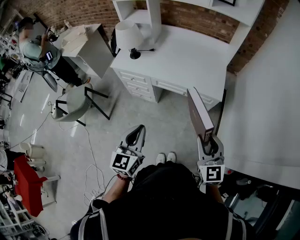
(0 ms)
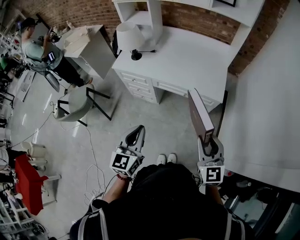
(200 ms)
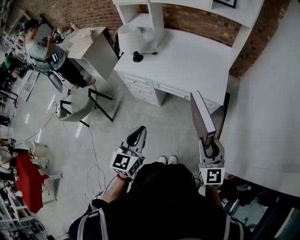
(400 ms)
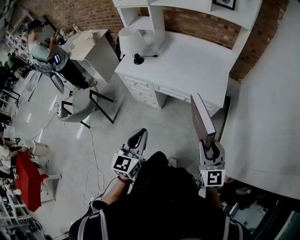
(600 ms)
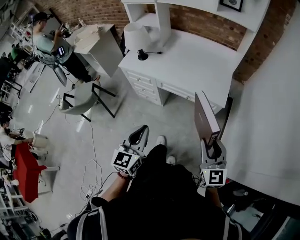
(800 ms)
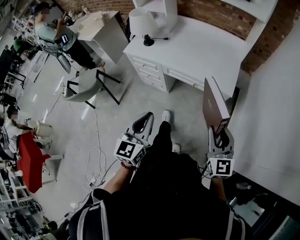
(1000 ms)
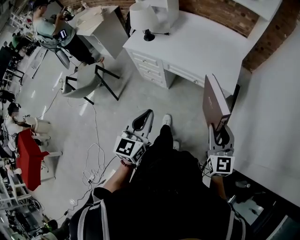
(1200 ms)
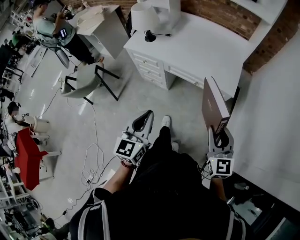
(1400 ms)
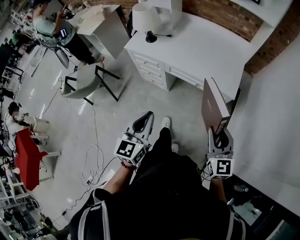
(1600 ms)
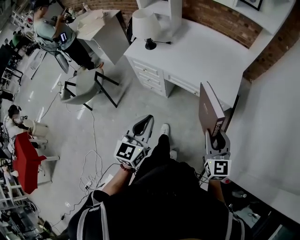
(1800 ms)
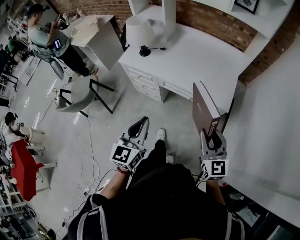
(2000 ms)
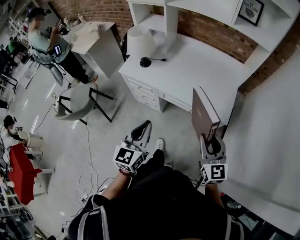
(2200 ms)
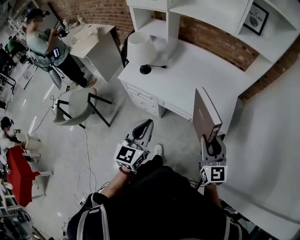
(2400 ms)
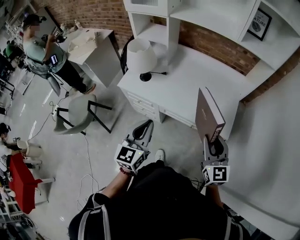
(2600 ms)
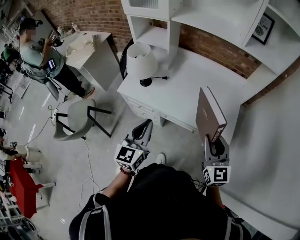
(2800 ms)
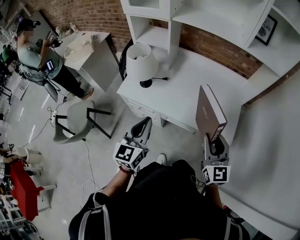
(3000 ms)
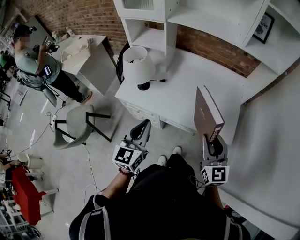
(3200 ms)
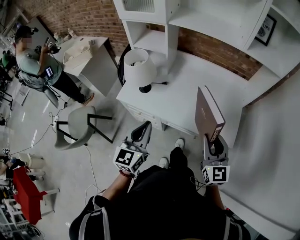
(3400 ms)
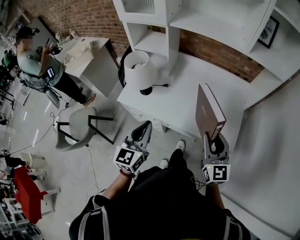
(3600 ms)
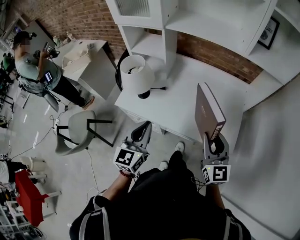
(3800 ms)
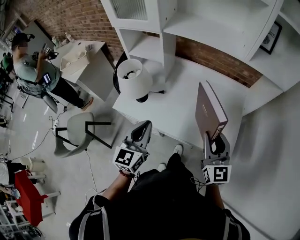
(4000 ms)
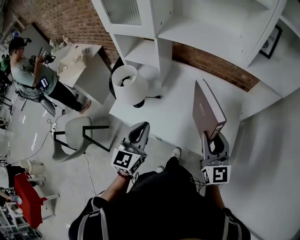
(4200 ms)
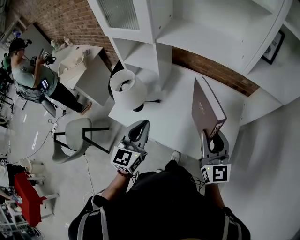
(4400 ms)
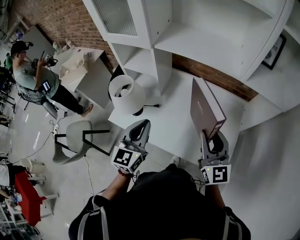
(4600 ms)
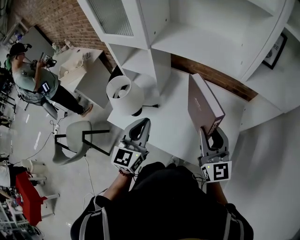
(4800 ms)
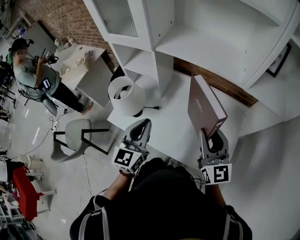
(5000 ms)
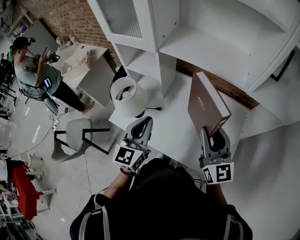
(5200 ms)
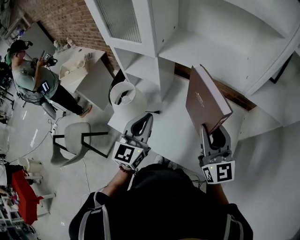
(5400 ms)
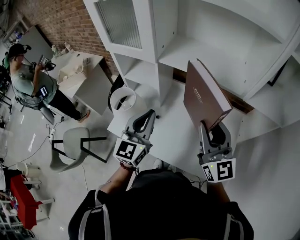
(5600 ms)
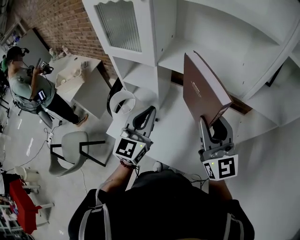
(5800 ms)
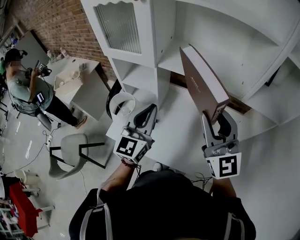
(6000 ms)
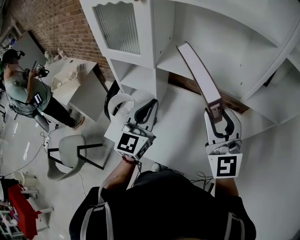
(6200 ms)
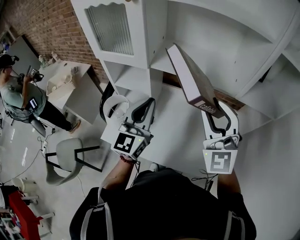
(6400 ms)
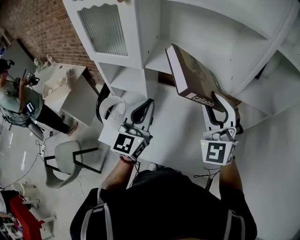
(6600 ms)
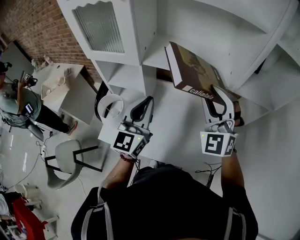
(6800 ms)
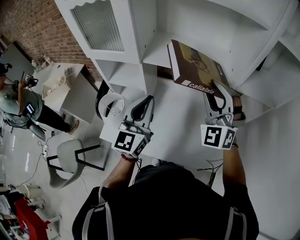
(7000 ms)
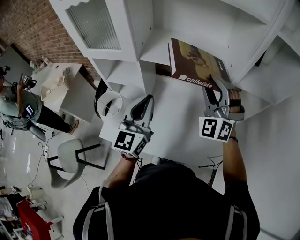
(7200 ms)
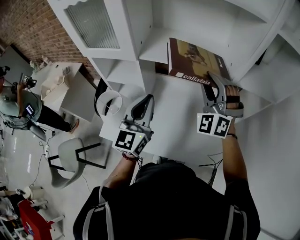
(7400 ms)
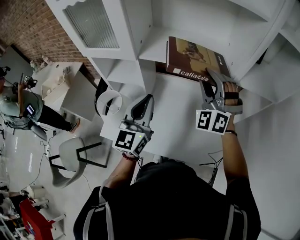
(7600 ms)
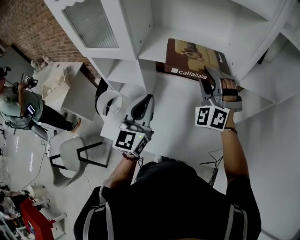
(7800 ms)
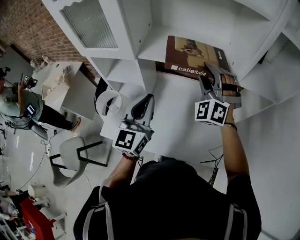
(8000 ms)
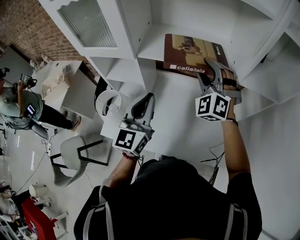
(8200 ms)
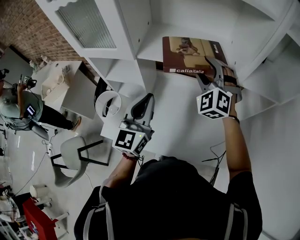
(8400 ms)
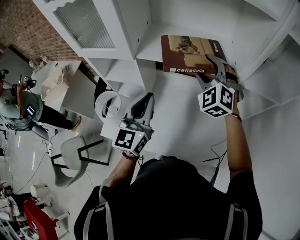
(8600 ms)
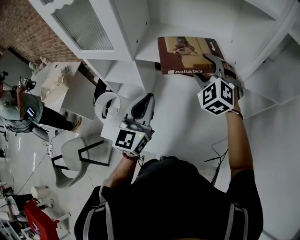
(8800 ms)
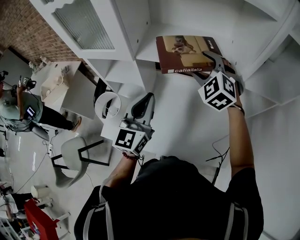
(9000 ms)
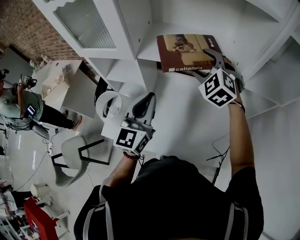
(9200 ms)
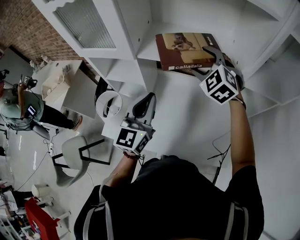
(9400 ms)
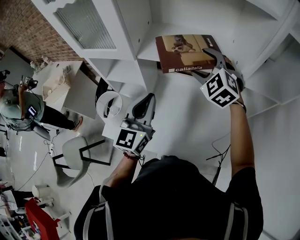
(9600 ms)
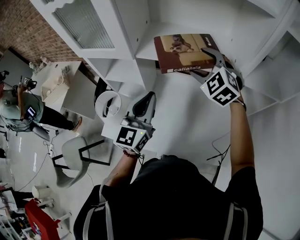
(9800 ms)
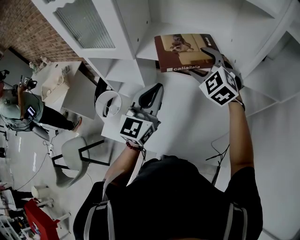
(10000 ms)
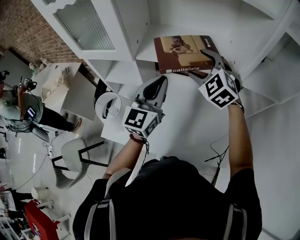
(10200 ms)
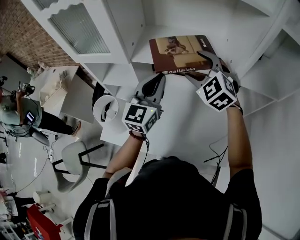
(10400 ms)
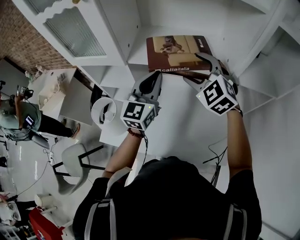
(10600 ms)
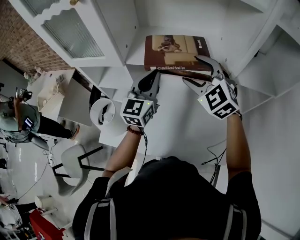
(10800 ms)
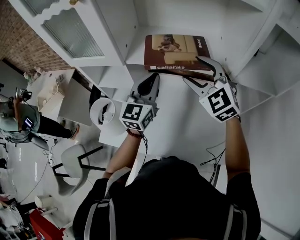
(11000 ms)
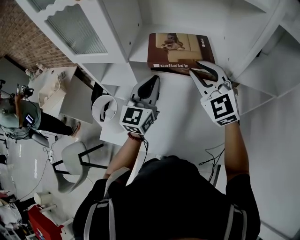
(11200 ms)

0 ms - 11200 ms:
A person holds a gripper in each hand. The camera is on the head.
0 ms - 1600 ms: The right gripper moves roughly 5 cm.
1600 ms - 3200 ms: The grippers both shift forward by about 30 cm.
3200 ms - 4800 ms: The grippers both shift forward by approximately 20 cm.
4800 ms - 6400 ms: The left gripper heads forward and upward, covering roughly 15 cm; the right gripper moves upward, forward and to the left, approximately 15 cm, and swivels roughly 40 degrees.
6400 ms - 8000 ms: The right gripper is displaced forward and downward by about 15 cm, and changes its angle by approximately 40 degrees. Meanwhile the left gripper ends up some 5 cm from where it was.
8000 ms - 9600 ms: The right gripper swivels approximately 30 degrees, and opens up.
9600 ms - 11200 ms: The right gripper travels backward by roughly 5 cm, changes its angle by some 20 degrees, and closes up; the left gripper moves forward, roughly 5 cm.

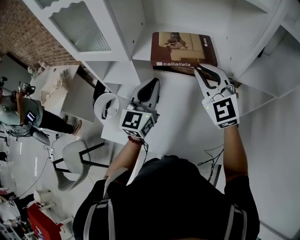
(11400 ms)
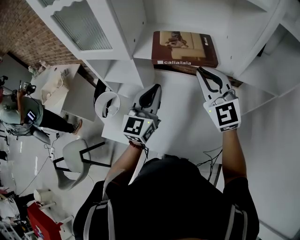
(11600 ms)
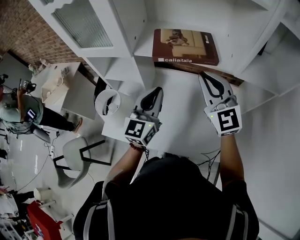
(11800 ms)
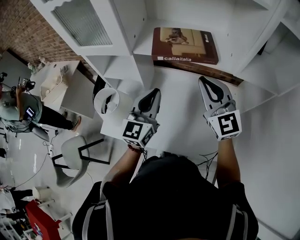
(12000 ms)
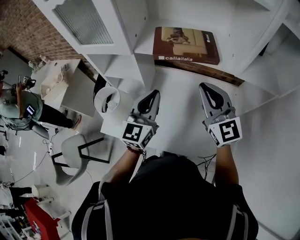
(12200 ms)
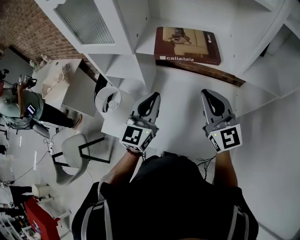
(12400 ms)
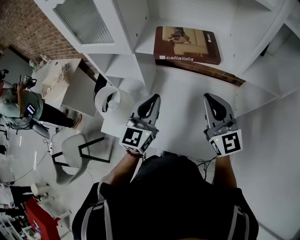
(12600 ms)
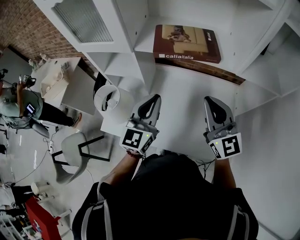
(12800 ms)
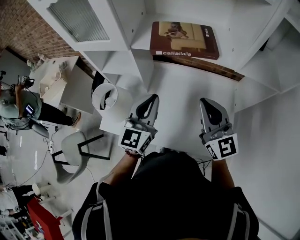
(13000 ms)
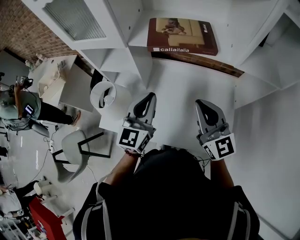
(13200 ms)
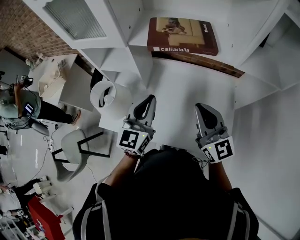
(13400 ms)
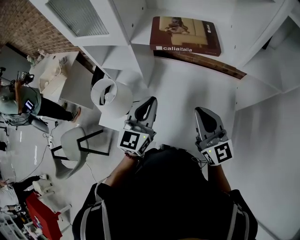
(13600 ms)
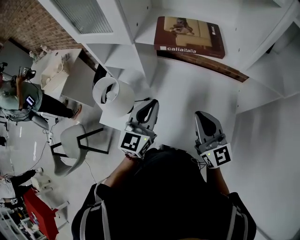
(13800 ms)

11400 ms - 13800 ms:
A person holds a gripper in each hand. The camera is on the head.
11400 ms - 12600 ms: The two grippers go roughly 10 cm backward. The right gripper turns by roughly 20 degrees.
12600 ms - 13800 ms: The right gripper travels downward and backward by roughly 10 cm.

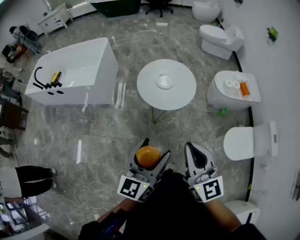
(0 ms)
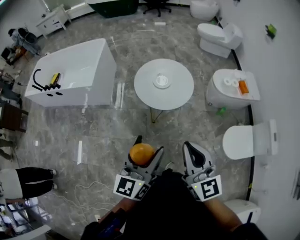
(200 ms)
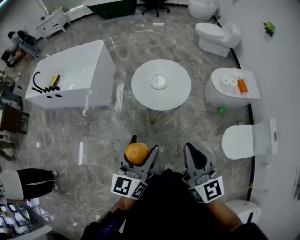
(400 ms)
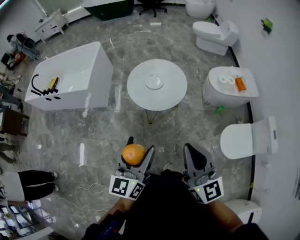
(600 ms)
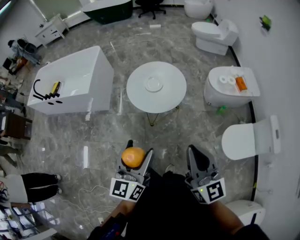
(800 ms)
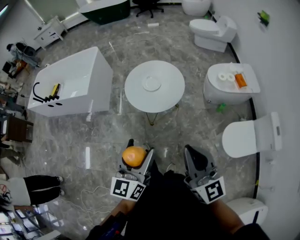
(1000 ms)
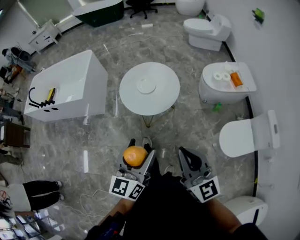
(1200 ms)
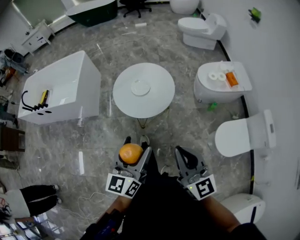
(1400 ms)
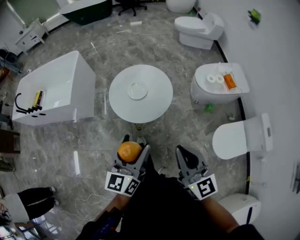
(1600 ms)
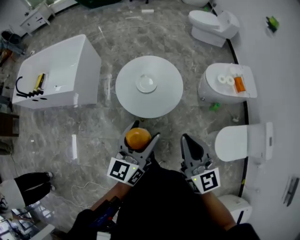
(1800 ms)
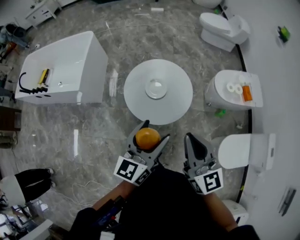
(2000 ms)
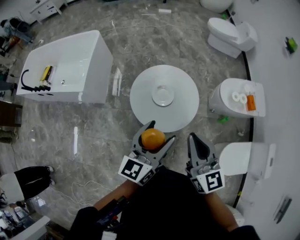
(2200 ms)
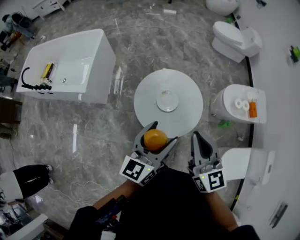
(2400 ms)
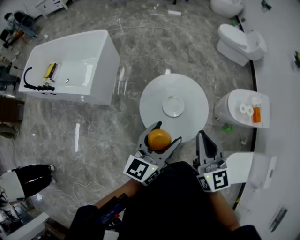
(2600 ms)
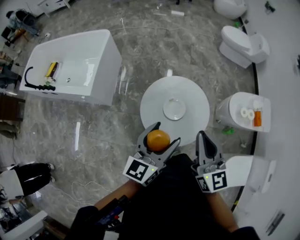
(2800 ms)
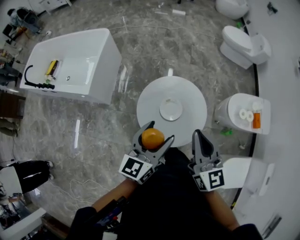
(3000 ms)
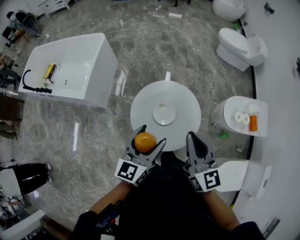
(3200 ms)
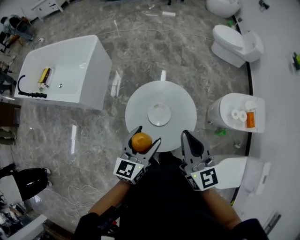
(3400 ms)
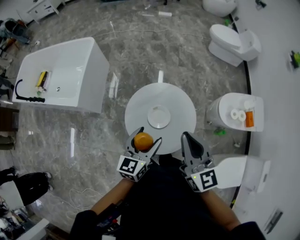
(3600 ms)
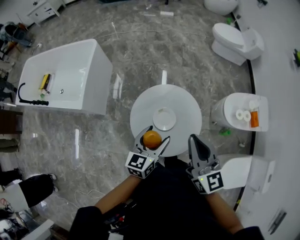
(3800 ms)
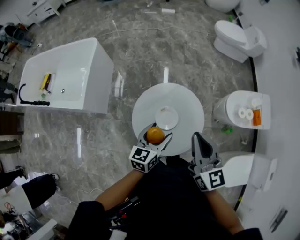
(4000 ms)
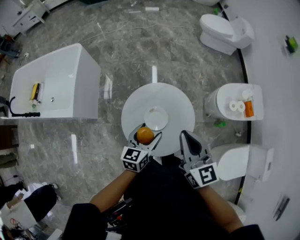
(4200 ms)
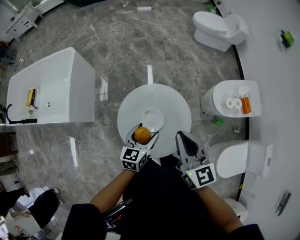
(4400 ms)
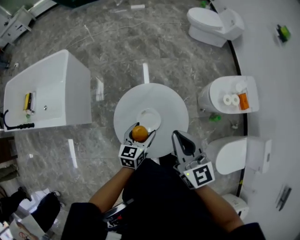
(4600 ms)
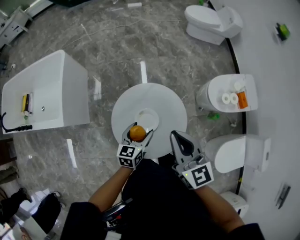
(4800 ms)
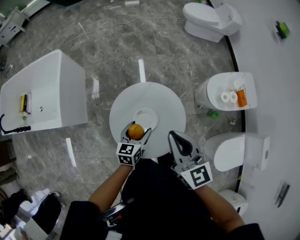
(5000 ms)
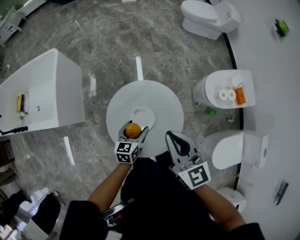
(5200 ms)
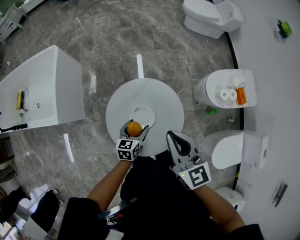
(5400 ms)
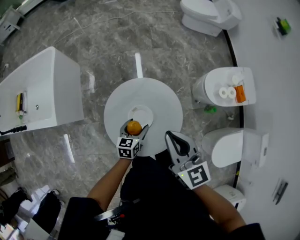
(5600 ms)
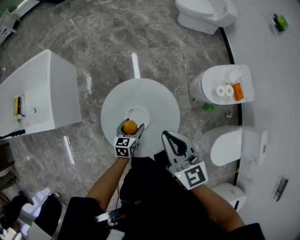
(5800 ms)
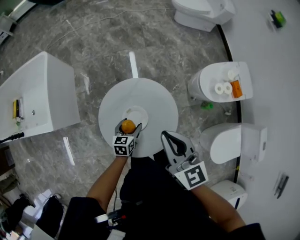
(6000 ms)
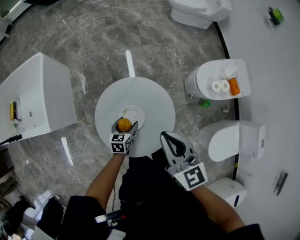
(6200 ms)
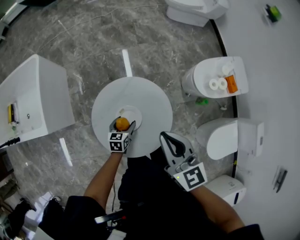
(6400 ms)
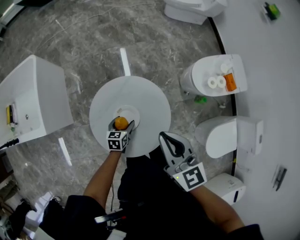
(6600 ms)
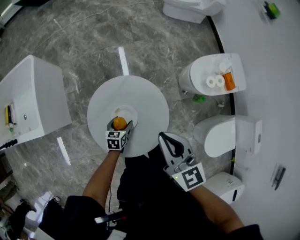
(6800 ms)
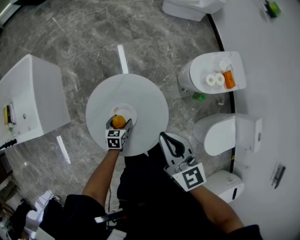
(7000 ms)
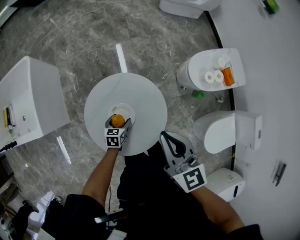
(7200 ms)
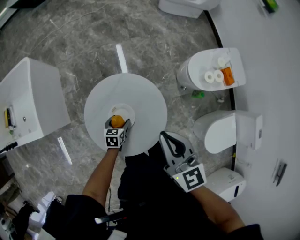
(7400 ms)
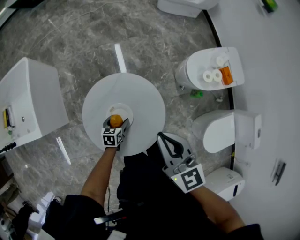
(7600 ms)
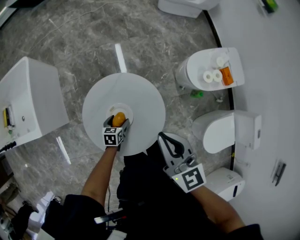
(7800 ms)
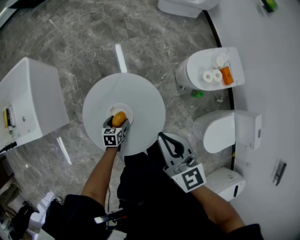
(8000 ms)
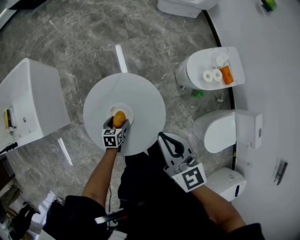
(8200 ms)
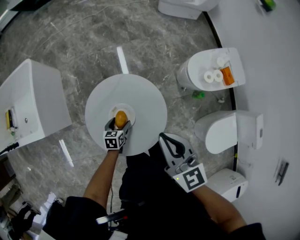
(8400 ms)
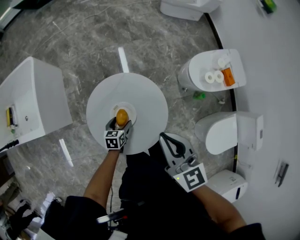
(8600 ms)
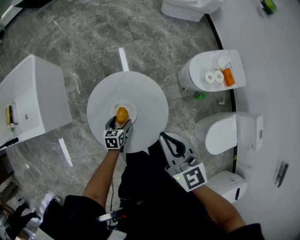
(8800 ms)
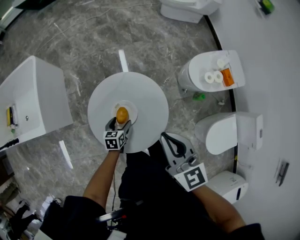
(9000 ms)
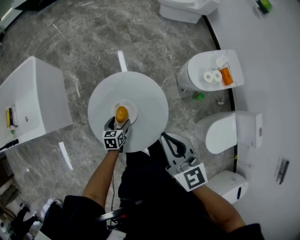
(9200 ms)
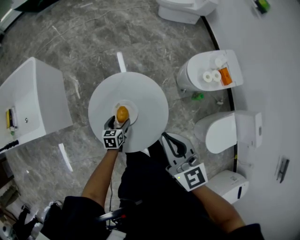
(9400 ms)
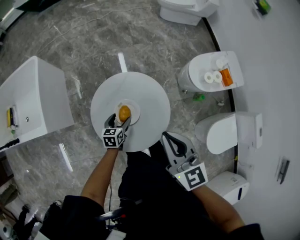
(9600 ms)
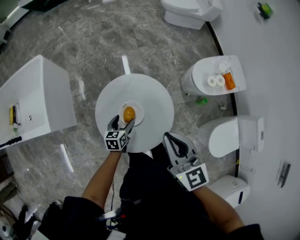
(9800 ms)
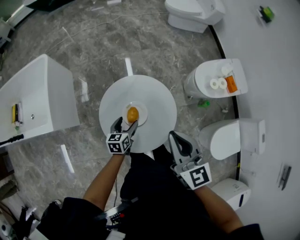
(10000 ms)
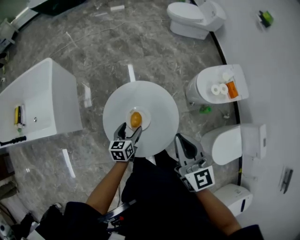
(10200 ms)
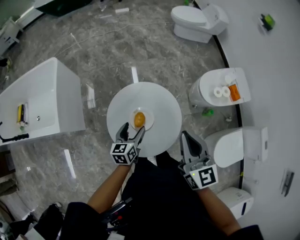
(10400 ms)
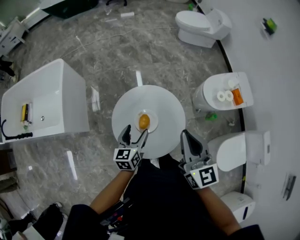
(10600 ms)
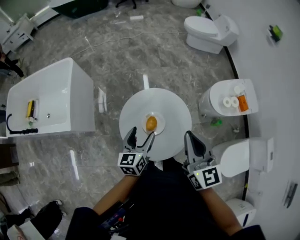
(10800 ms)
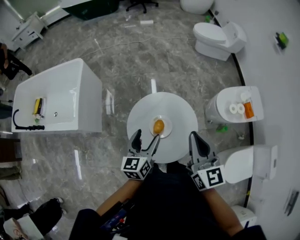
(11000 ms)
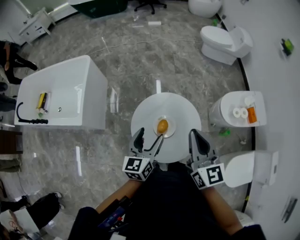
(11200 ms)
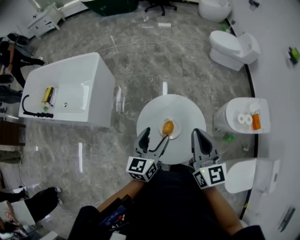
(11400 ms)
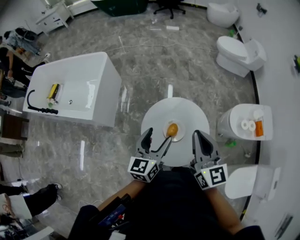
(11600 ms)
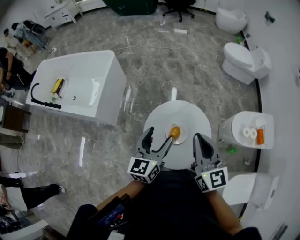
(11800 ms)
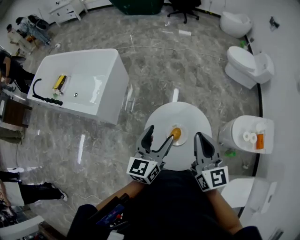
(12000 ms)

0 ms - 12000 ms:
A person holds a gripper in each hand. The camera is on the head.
0 ms - 1600 ms: The right gripper shifts roughly 15 cm to the right, forward and downward. The left gripper heads forward and to the right, covering roughly 15 cm.
1600 ms - 3000 ms: Both grippers move forward, roughly 30 cm.
3000 ms - 4400 ms: The right gripper shifts some 5 cm forward. Meanwhile the left gripper heads downward and forward, covering approximately 20 cm, and swivels roughly 20 degrees.
4400 ms - 6000 ms: The left gripper is displaced downward by about 15 cm.
6000 ms - 7600 ms: The left gripper goes about 10 cm downward; the right gripper shifts by approximately 5 cm.
7600 ms - 9000 ms: The grippers make only small movements.
9000 ms - 10400 ms: The left gripper shifts about 15 cm upward, and rotates approximately 20 degrees.
10400 ms - 12000 ms: The right gripper shifts approximately 10 cm to the left. The left gripper heads upward, covering approximately 20 cm, and rotates roughly 30 degrees.
